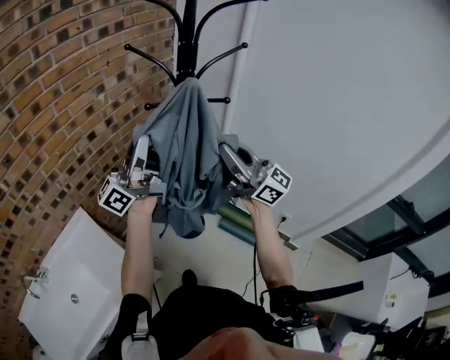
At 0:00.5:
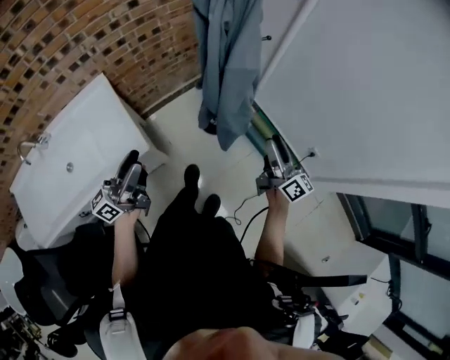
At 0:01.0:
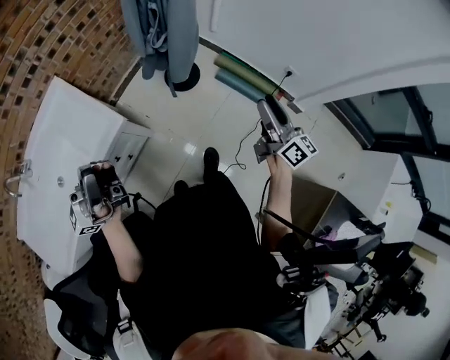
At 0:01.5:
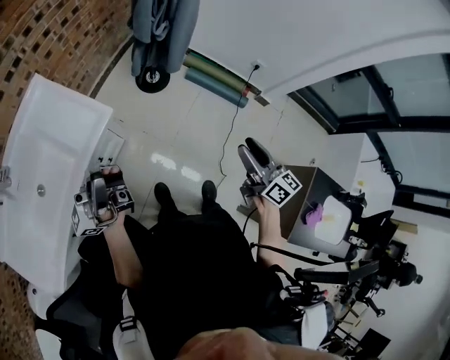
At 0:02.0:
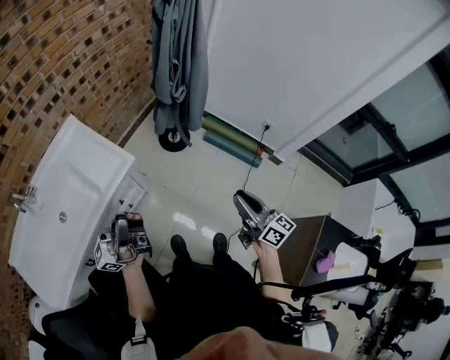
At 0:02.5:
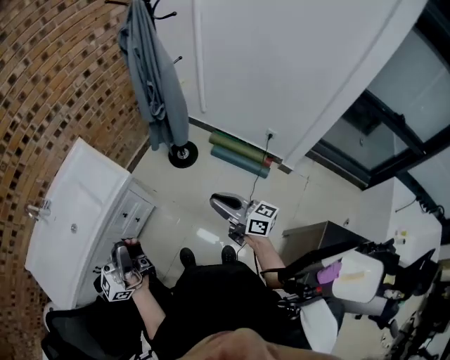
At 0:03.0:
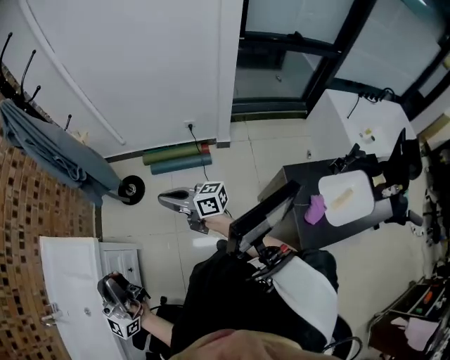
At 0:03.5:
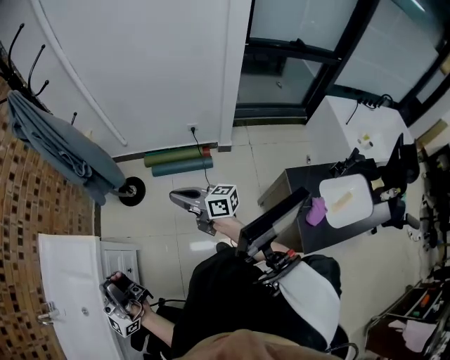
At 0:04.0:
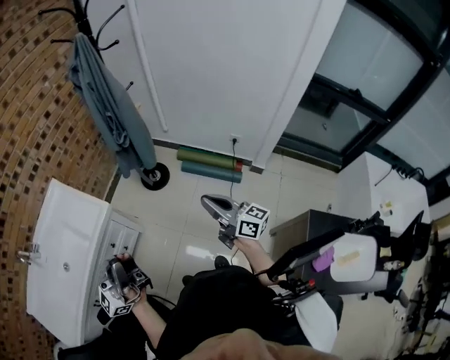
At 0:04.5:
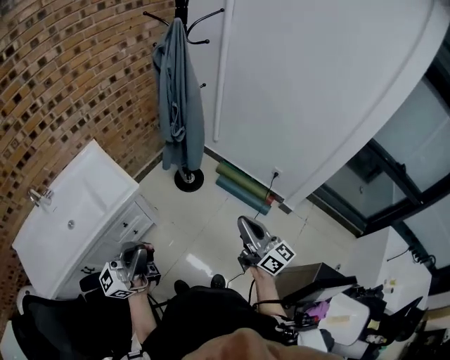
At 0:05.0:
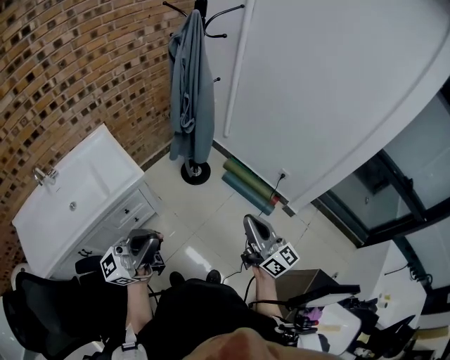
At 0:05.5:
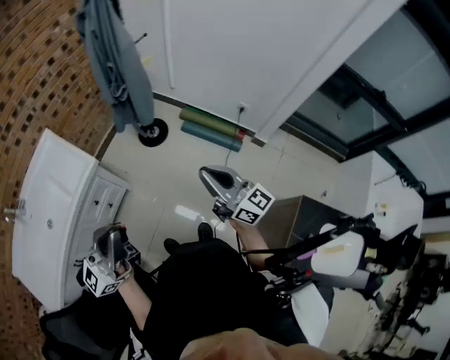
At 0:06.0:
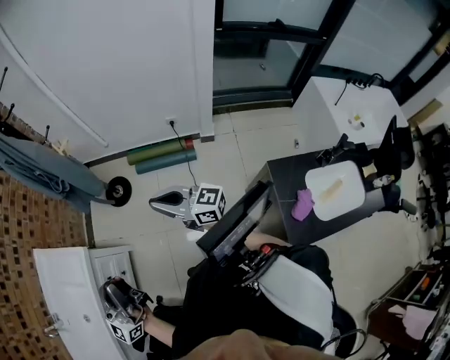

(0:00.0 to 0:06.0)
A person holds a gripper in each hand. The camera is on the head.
0:00.0 - 0:02.0: The pair of grippers is taken backward, some 50 cm. The left gripper opens and closes again; the right gripper travels downward by about 25 cm, turns by roughly 40 degrees, and opens and closes again.
0:02.0 - 0:04.0: The left gripper goes some 15 cm to the right. The right gripper moves to the right, about 10 cm, and closes its fingers.
0:04.0 - 0:06.0: The left gripper heads to the right, covering approximately 10 cm.

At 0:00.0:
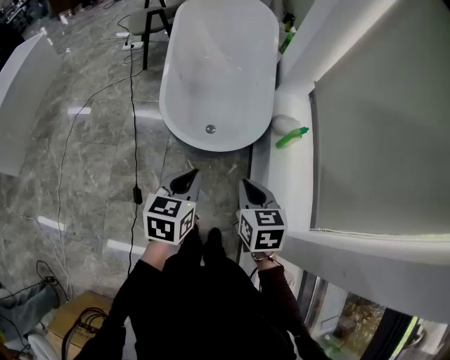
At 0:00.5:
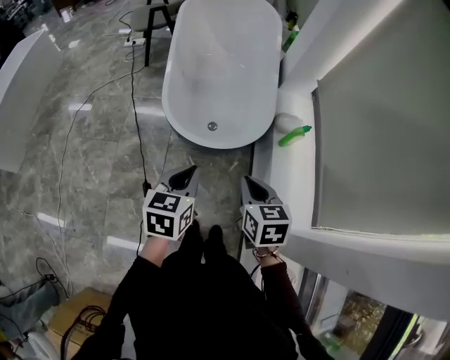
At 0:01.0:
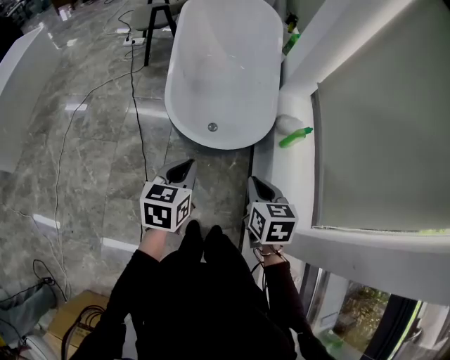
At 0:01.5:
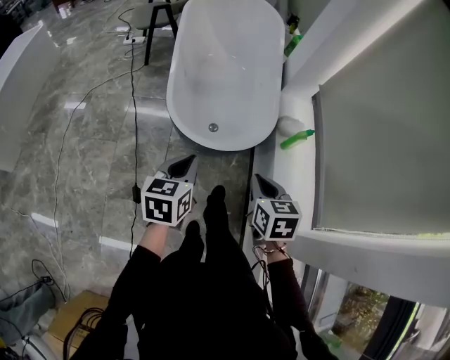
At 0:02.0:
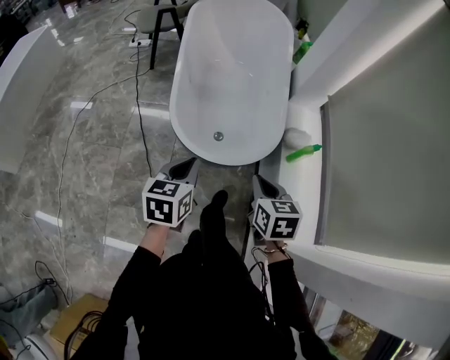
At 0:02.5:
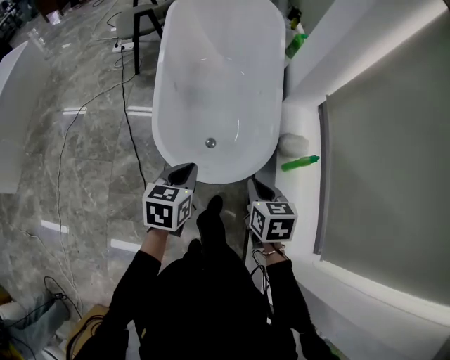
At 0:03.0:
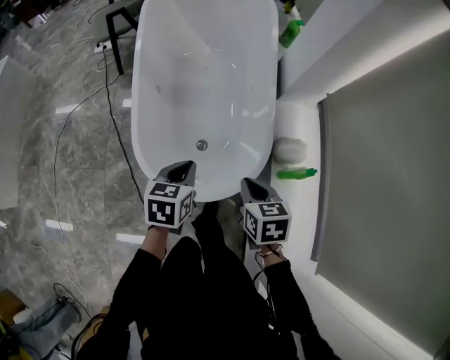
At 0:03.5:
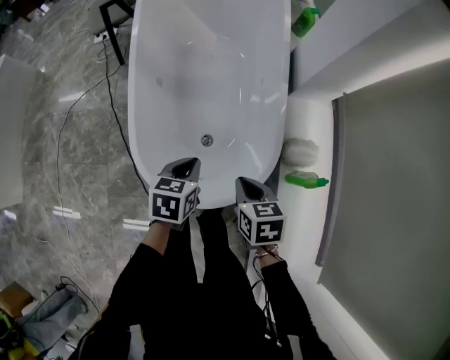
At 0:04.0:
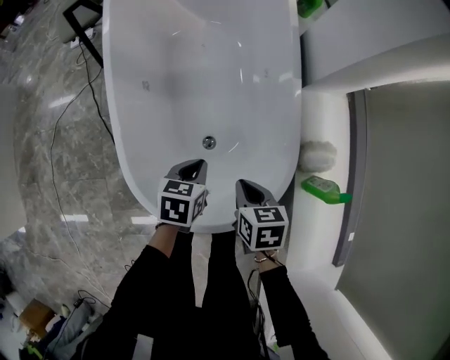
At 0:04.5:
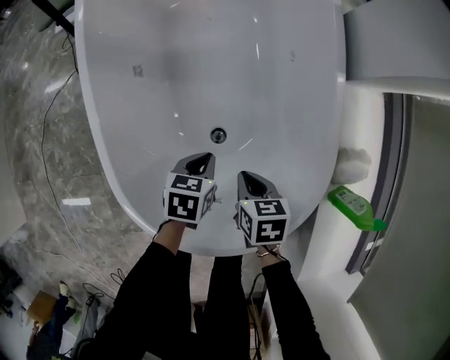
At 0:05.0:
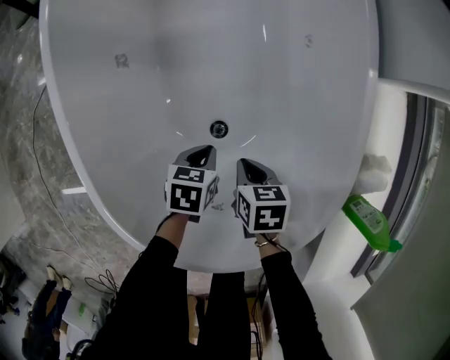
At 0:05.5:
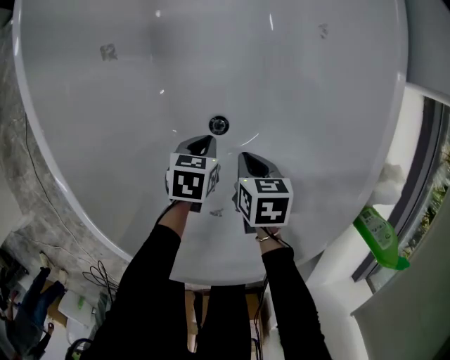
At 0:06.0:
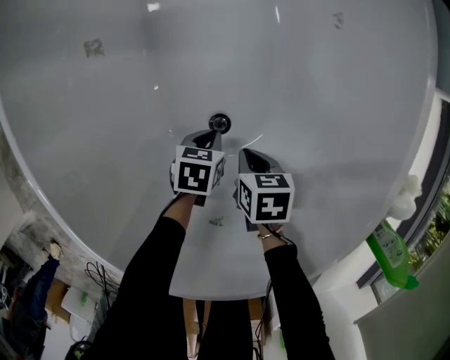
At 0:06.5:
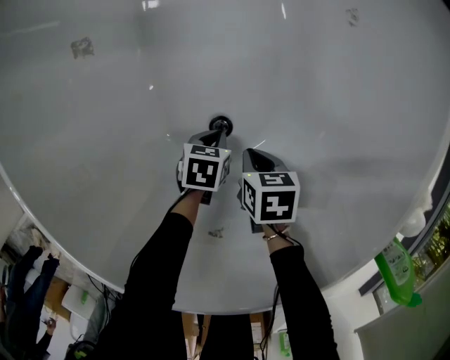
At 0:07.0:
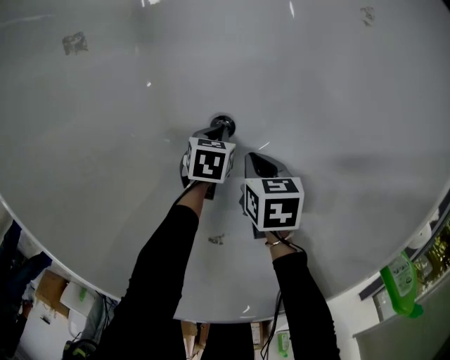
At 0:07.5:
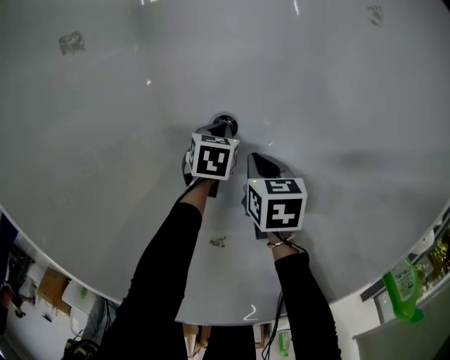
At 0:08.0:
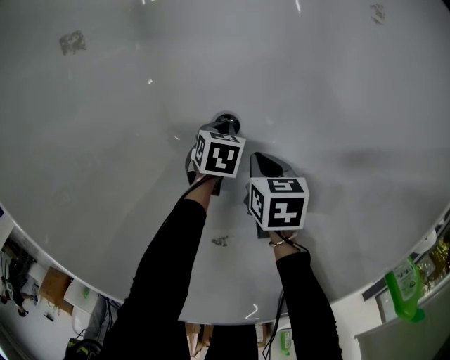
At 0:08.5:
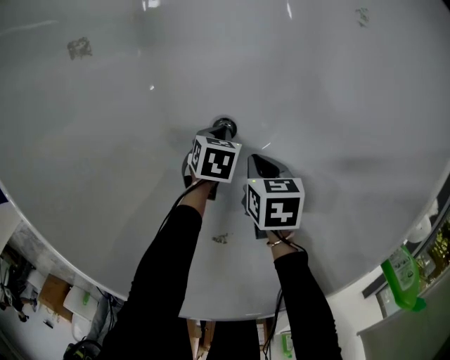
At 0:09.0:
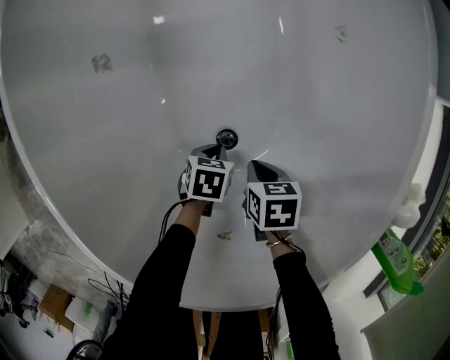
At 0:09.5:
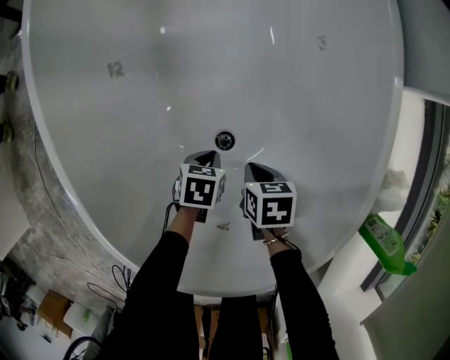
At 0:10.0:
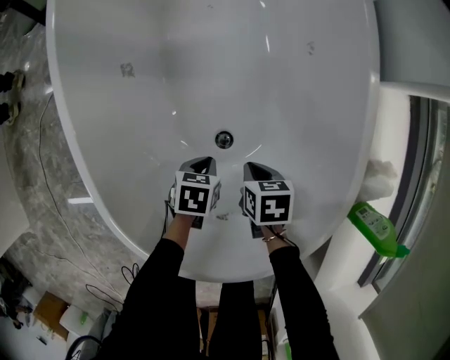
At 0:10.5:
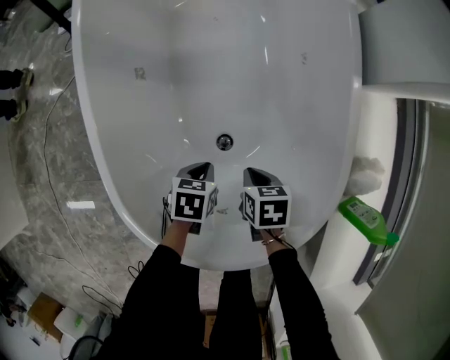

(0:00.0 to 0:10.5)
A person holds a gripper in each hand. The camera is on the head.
0:00.0 - 0:02.0: The left gripper travels forward and to the left by some 10 cm, while the right gripper is displaced forward by some 10 cm.
0:02.0 - 0:04.0: Both grippers travel together forward and downward, about 35 cm. The right gripper changes its angle by roughly 20 degrees. Meanwhile the left gripper swivels some 30 degrees.
0:04.0 - 0:06.5: Both grippers move downward, some 40 cm.
0:06.5 - 0:08.5: There are only small adjustments of the grippers.
0:08.5 - 0:10.5: Both grippers travel together upward, about 20 cm.

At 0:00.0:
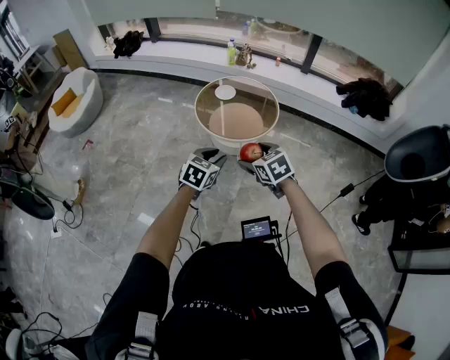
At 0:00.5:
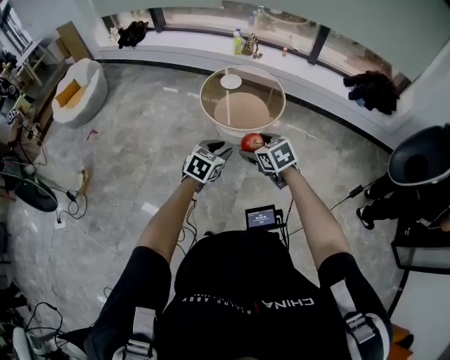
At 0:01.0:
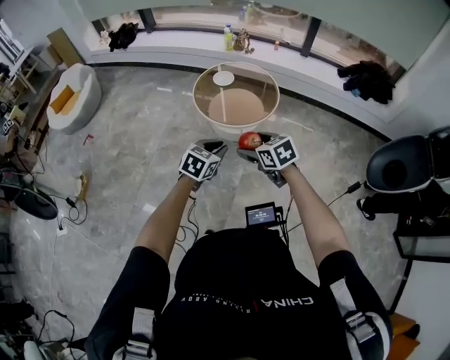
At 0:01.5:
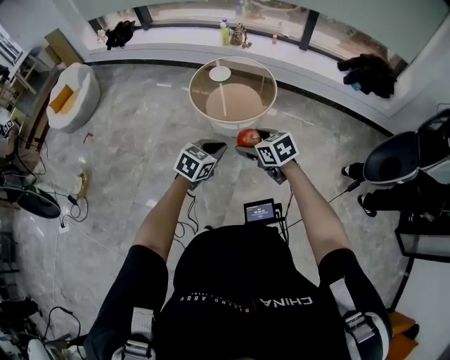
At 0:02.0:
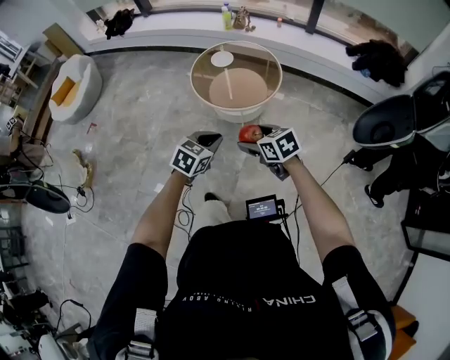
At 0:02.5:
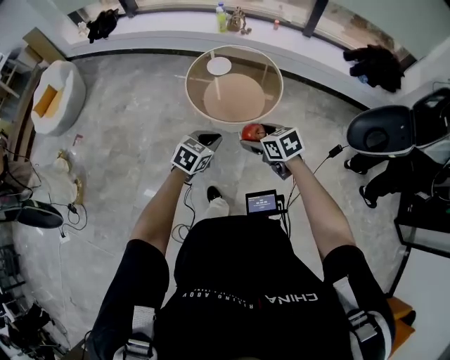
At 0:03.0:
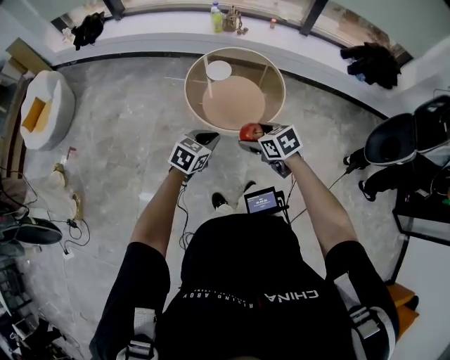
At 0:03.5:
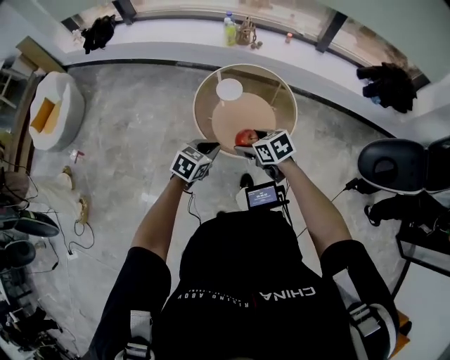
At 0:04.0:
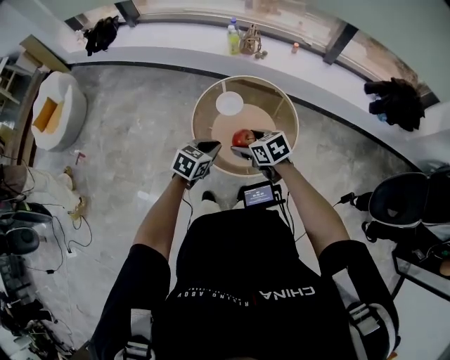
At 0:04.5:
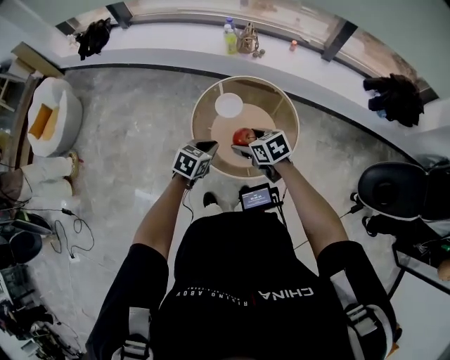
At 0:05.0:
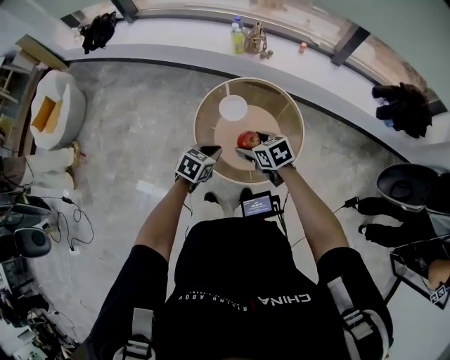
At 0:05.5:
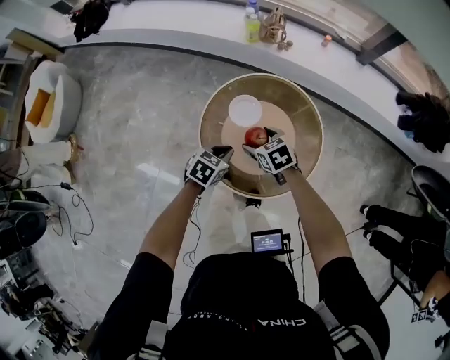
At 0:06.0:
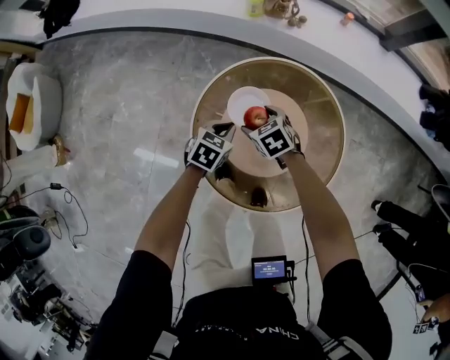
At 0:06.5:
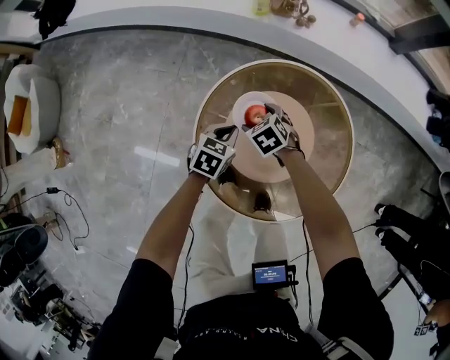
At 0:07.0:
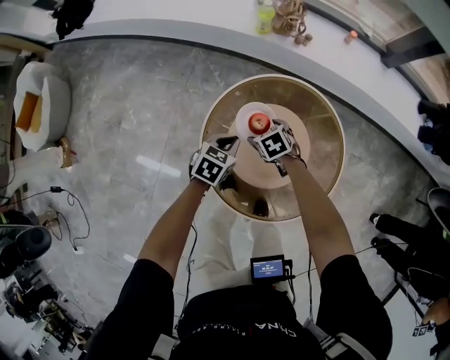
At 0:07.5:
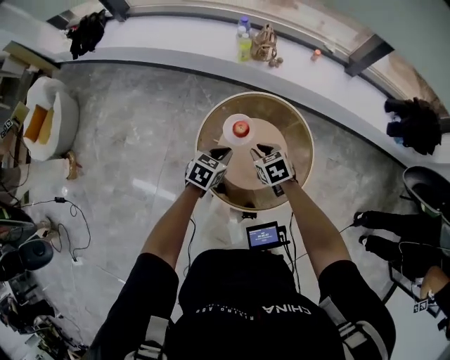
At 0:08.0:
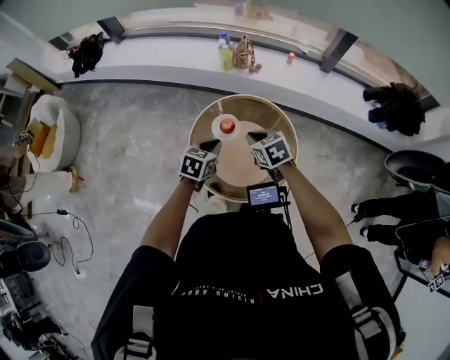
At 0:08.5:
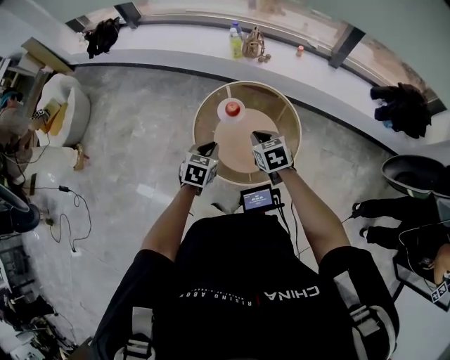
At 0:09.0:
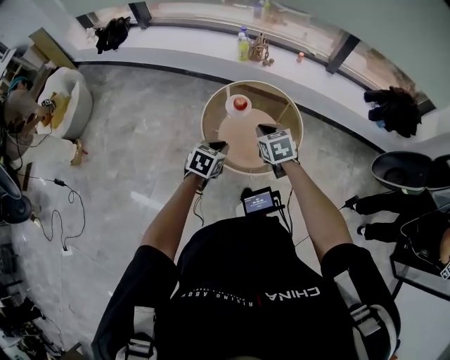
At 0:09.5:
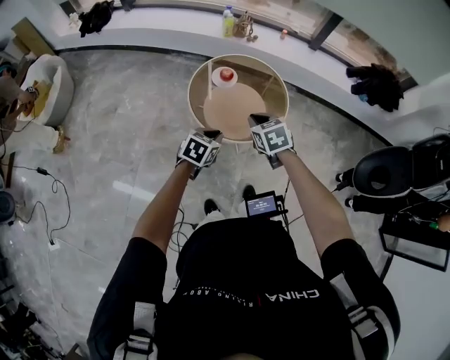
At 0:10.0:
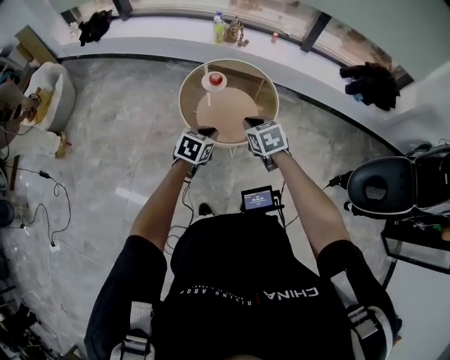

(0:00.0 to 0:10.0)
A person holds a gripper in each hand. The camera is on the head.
0:00.0 - 0:02.0: The left gripper moves roughly 5 cm, and closes its fingers. Meanwhile the right gripper shifts about 5 cm downward.
0:02.0 - 0:04.0: Both grippers are carried forward, approximately 50 cm.
0:04.0 - 0:06.0: The grippers both shift forward and downward by roughly 50 cm.
0:06.0 - 0:08.0: The grippers both shift upward and backward by about 40 cm. The right gripper closes up.
0:08.0 - 0:10.0: Both grippers move backward, approximately 35 cm.
